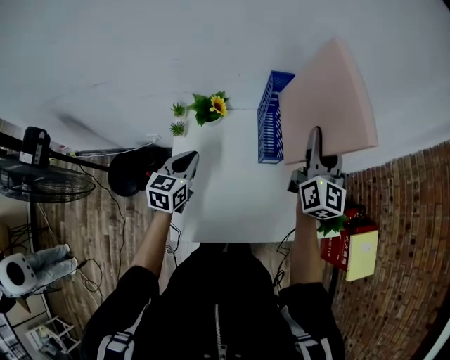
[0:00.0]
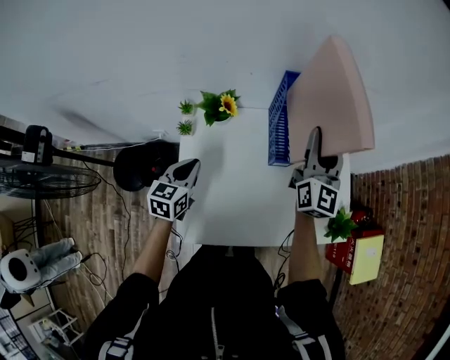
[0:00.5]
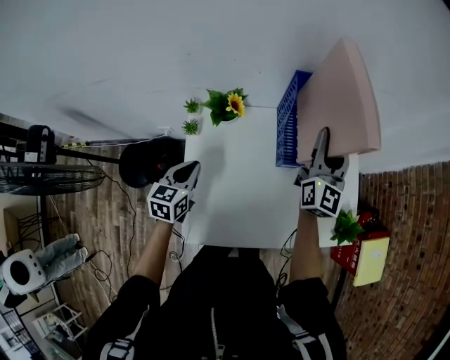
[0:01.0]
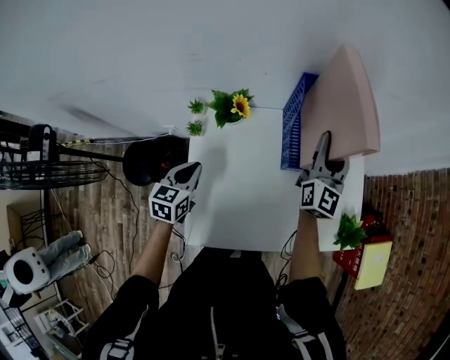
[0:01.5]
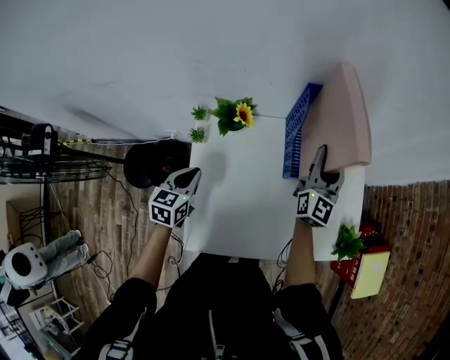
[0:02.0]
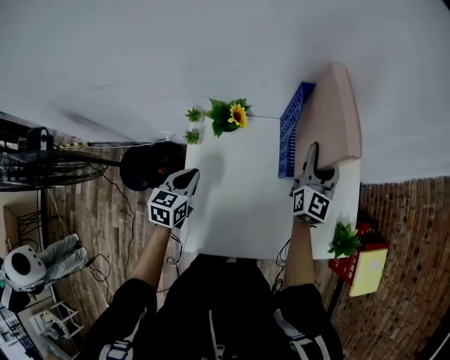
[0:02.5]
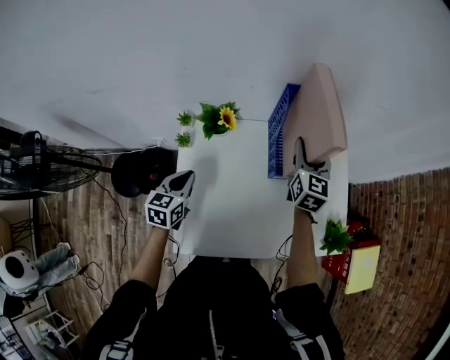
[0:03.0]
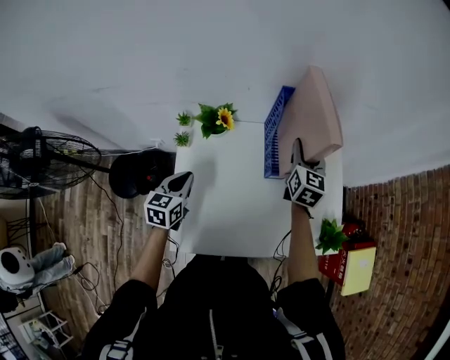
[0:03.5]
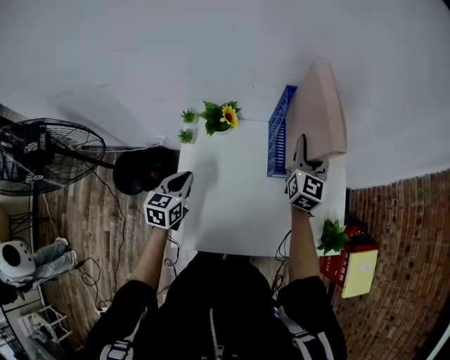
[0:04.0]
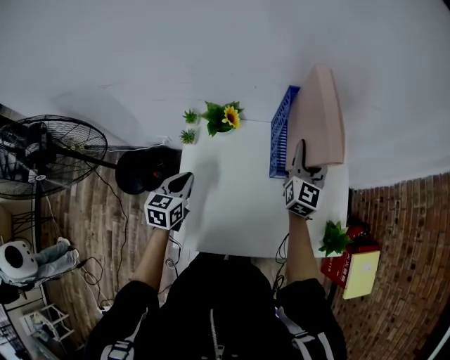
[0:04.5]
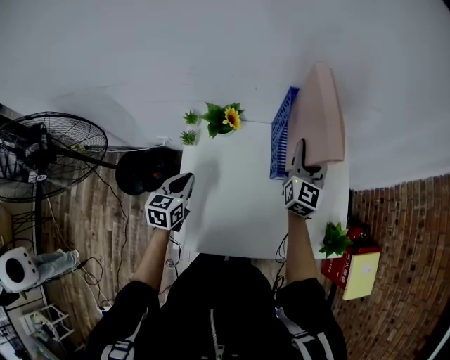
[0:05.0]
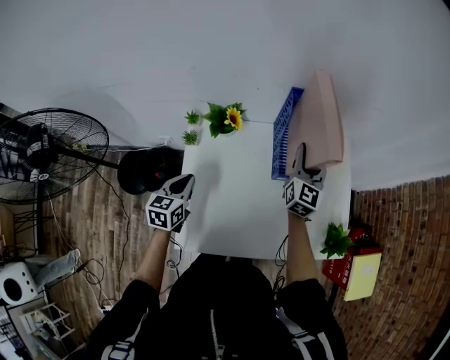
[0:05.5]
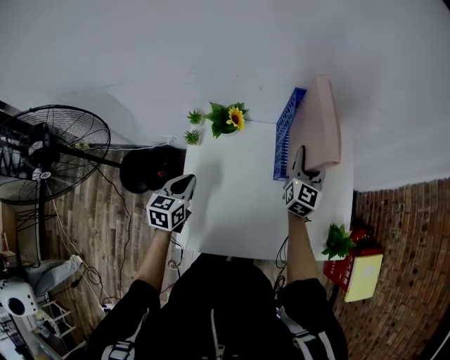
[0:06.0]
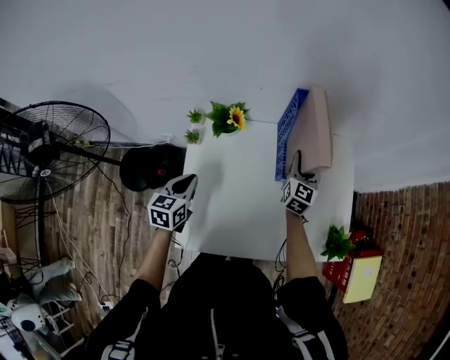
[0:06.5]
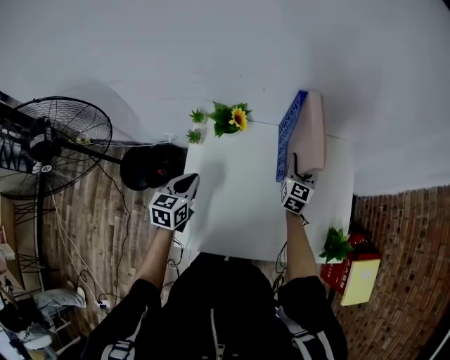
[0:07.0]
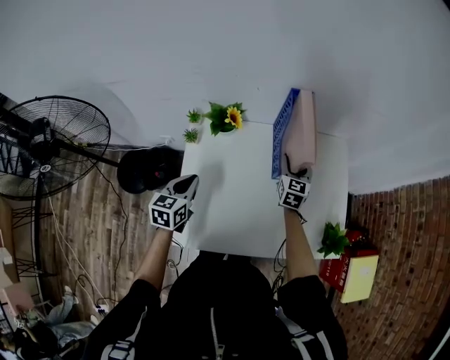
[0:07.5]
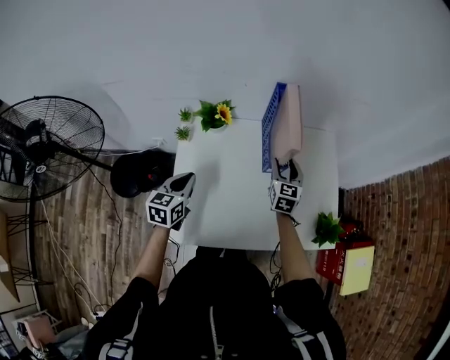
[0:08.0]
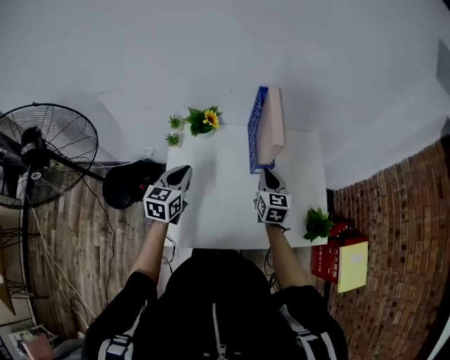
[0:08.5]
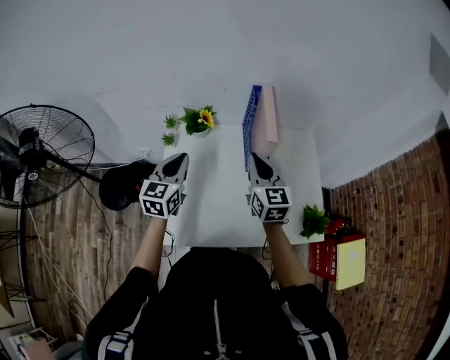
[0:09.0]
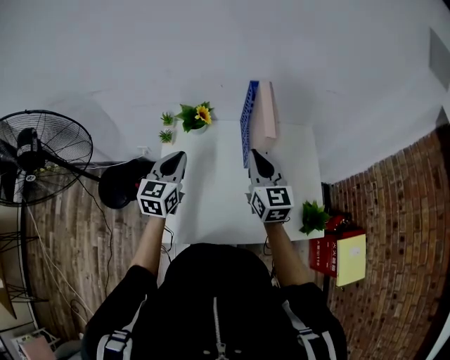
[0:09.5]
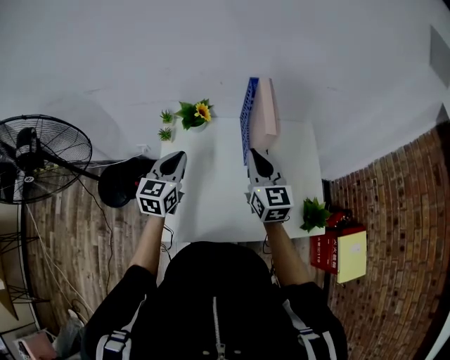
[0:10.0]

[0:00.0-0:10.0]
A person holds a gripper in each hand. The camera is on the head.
0.0 to 2.0 s: The left gripper heads to the left and downward, covering roughly 10 cm; the right gripper moves downward and forward, roughly 15 cm.
4.0 to 6.0 s: The right gripper goes some 5 cm downward.
6.0 to 8.0 s: The right gripper is displaced downward and backward by roughly 10 cm. Meanwhile the left gripper moves some 5 cm.
8.0 to 10.0 s: The left gripper is displaced upward by roughly 10 cm; the right gripper heads upward, backward and to the left, covering approximately 20 cm, swivels roughly 20 degrees, and closes.

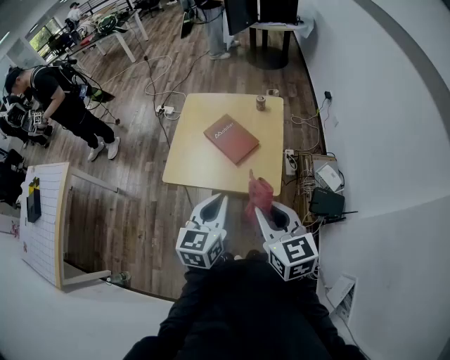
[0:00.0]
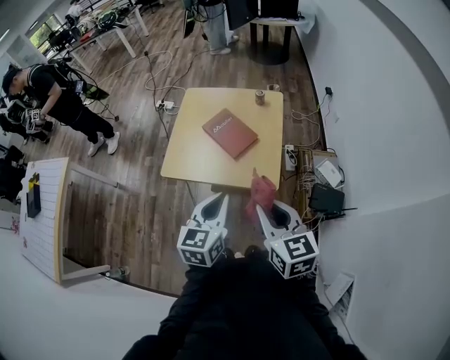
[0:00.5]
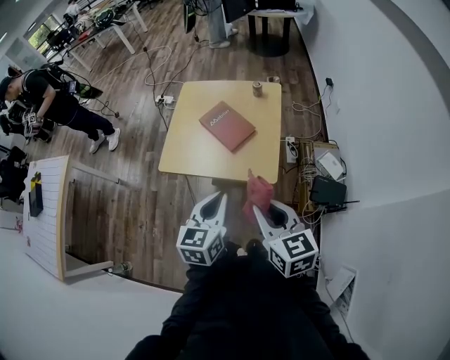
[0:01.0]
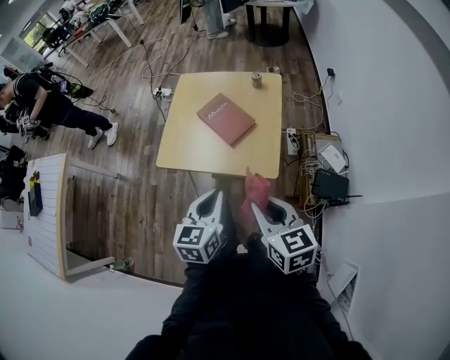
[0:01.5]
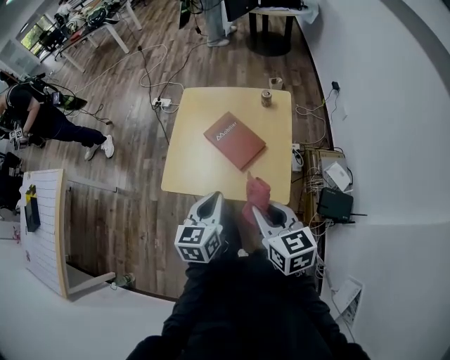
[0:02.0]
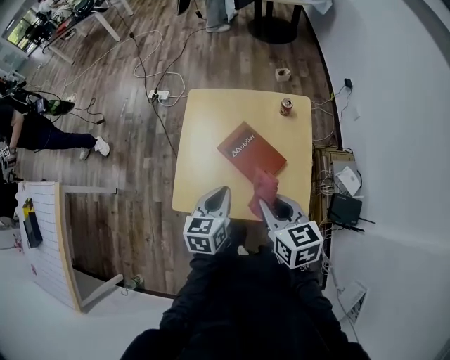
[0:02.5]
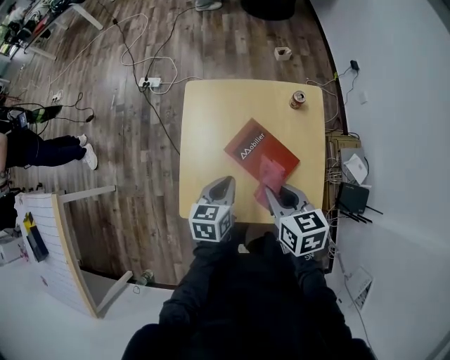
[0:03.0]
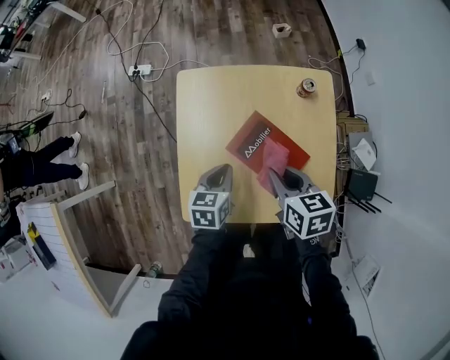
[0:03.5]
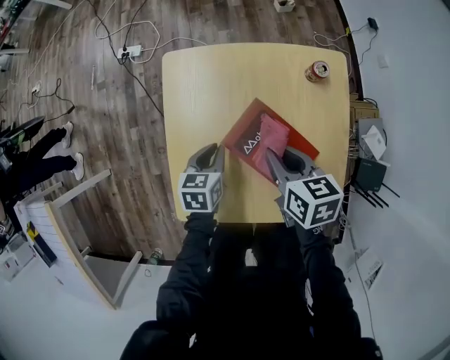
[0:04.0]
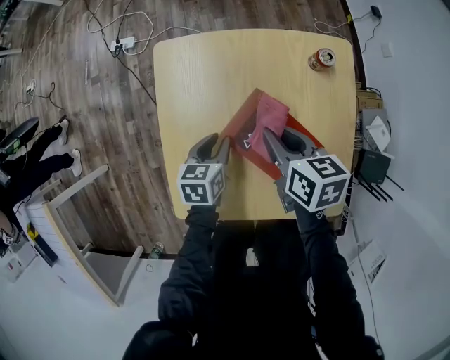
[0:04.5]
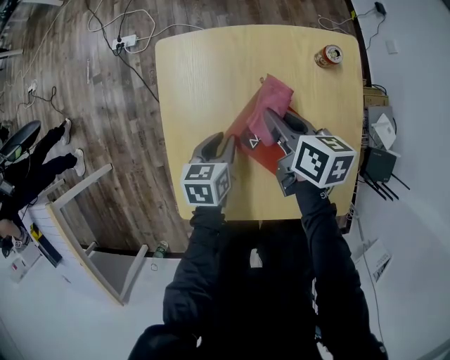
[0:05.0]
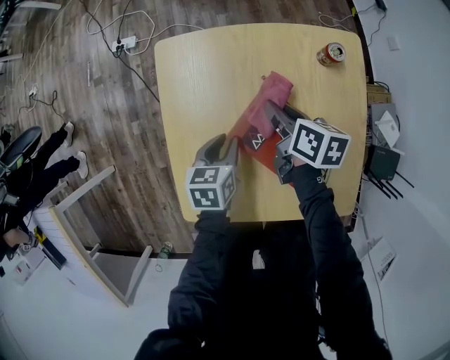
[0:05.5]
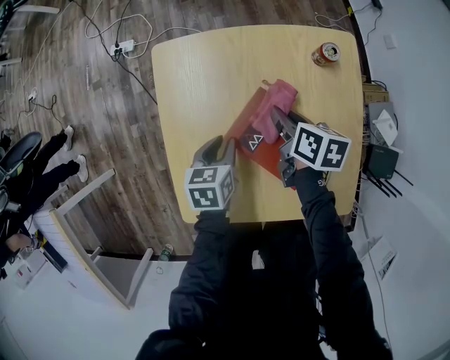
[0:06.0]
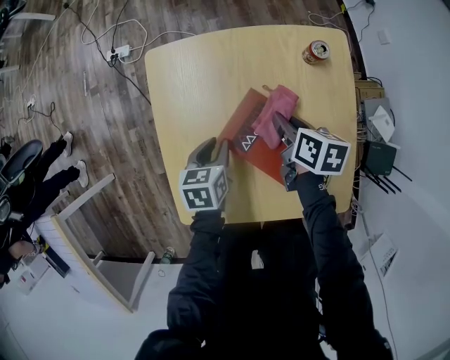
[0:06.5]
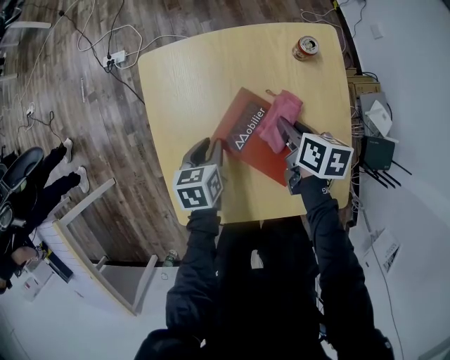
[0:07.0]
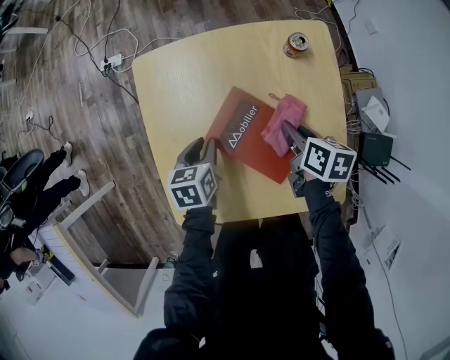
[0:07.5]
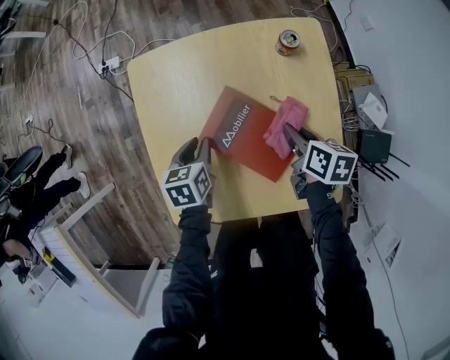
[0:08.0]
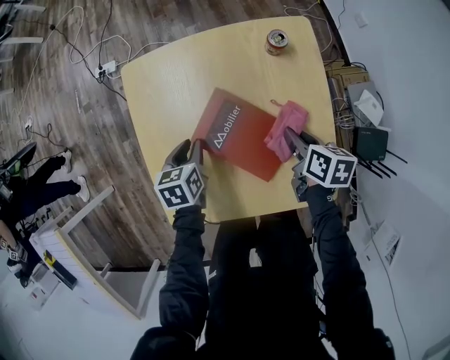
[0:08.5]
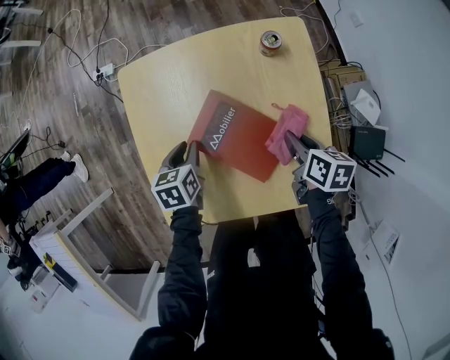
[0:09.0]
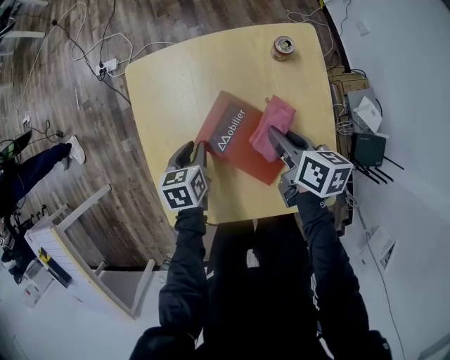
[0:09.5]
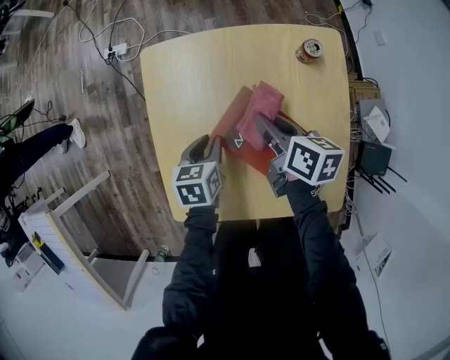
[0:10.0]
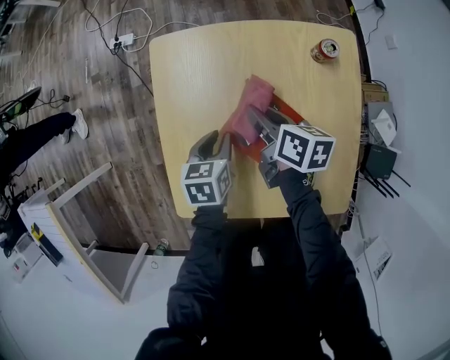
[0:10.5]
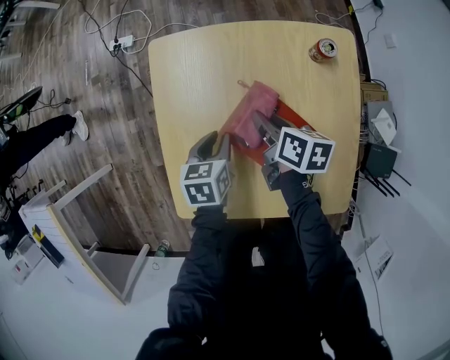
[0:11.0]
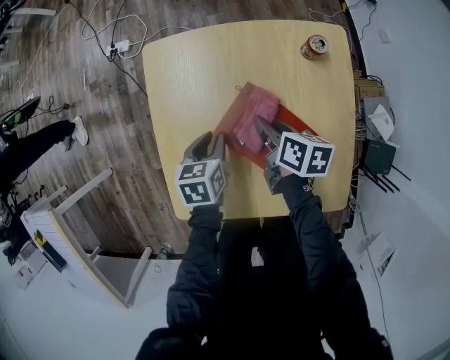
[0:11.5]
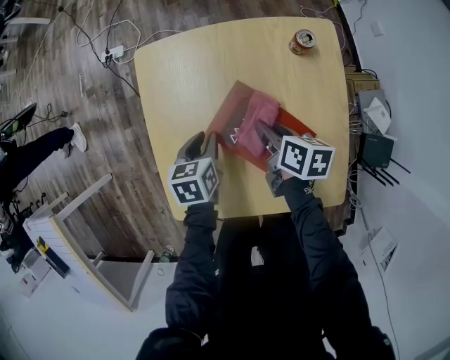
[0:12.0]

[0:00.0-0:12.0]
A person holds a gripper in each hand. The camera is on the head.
0.0 to 2.0 s: Both grippers travel together forward and downward, roughly 15 cm.
2.0 to 4.0 s: Both grippers travel together forward and downward, approximately 40 cm. The right gripper swivels about 30 degrees, while the left gripper changes its angle by some 30 degrees.
4.0 to 6.0 s: The right gripper travels downward and forward by approximately 10 cm, and rotates roughly 20 degrees.
6.0 to 8.0 s: The right gripper travels to the right and backward by some 15 cm.
8.0 to 10.0 s: The right gripper travels to the left and forward by roughly 10 cm.
10.0 to 12.0 s: The right gripper heads downward, covering about 5 cm.

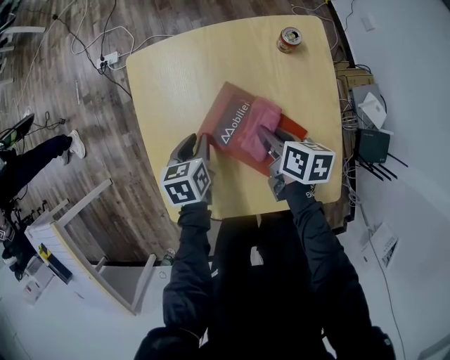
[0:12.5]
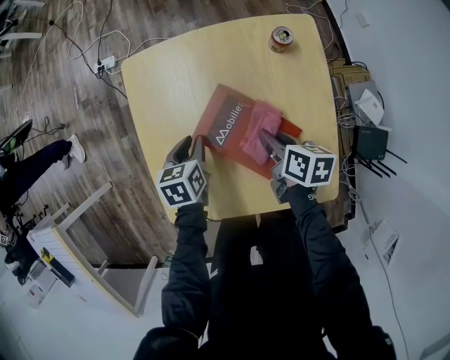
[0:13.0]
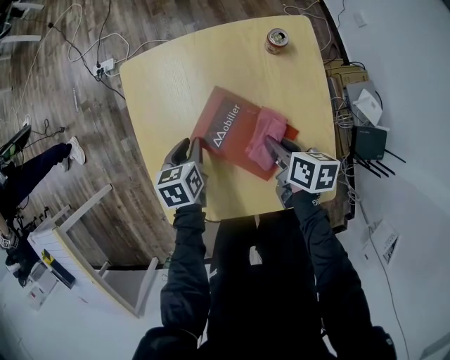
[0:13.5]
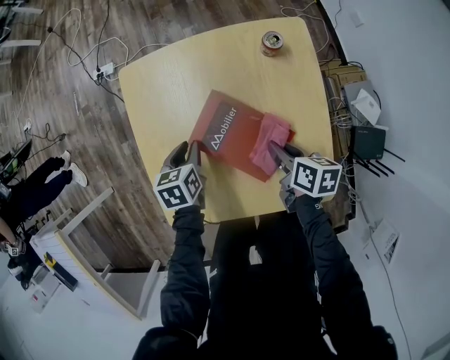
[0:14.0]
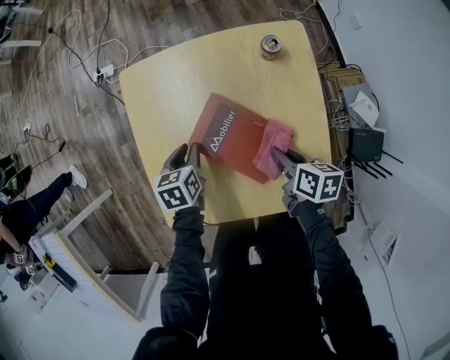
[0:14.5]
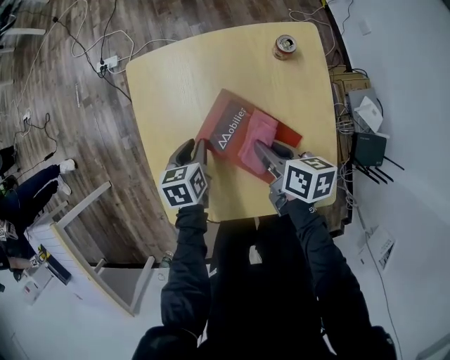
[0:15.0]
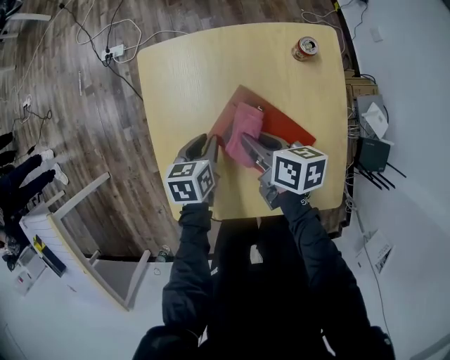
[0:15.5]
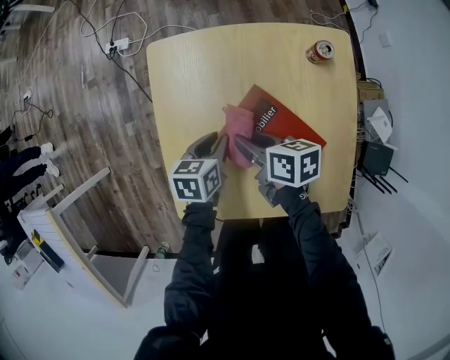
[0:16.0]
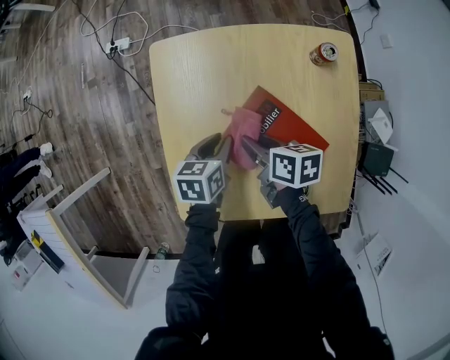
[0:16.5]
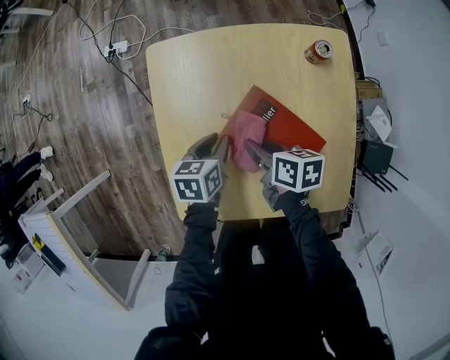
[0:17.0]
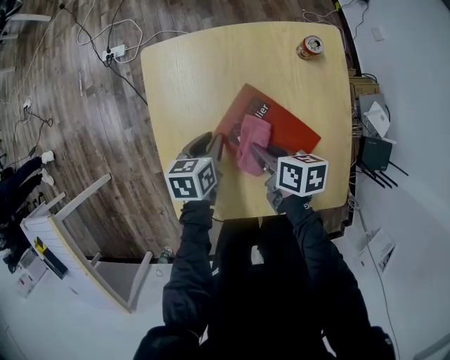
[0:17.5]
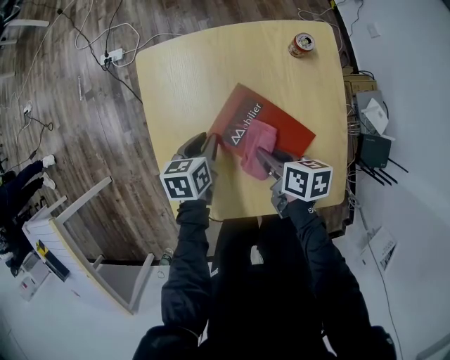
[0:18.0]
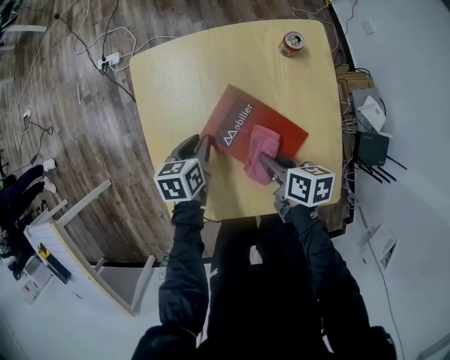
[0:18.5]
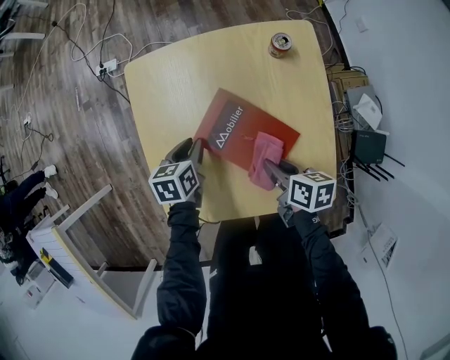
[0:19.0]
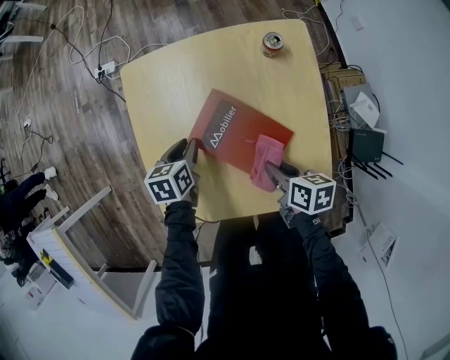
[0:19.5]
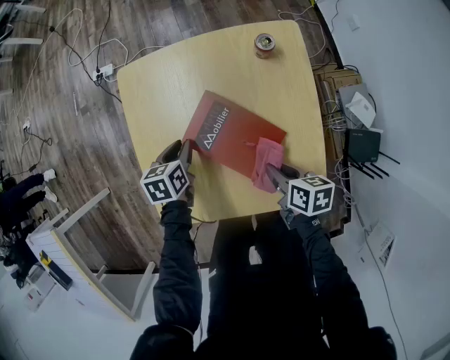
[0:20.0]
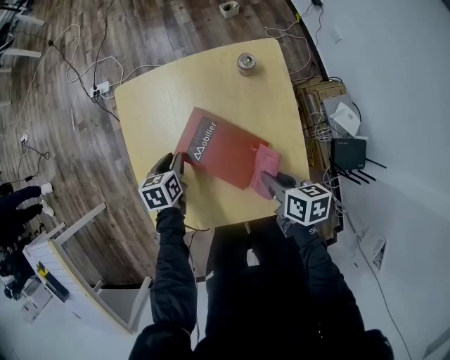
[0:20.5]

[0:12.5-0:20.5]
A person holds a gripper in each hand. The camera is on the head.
12.5 to 14.5 s: The right gripper shifts some 10 cm backward and to the right.
14.5 to 16.5 s: The right gripper heads to the left and forward, covering about 20 cm.
16.5 to 18.5 s: The right gripper is displaced to the right and backward by roughly 10 cm.
18.5 to 20.5 s: The right gripper heads to the right and upward, covering approximately 10 cm.
